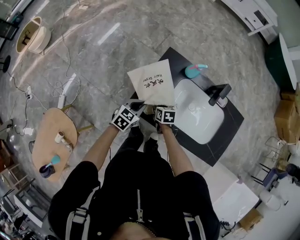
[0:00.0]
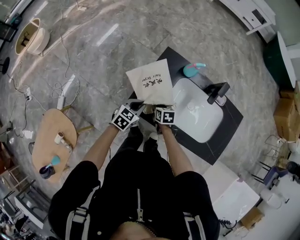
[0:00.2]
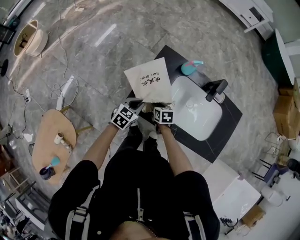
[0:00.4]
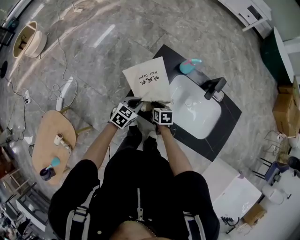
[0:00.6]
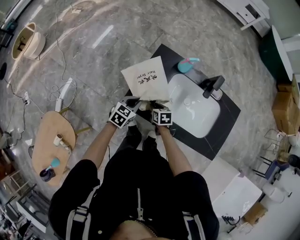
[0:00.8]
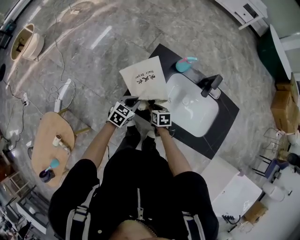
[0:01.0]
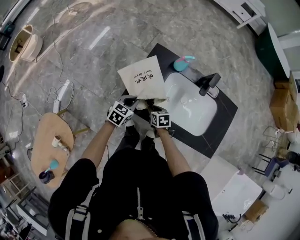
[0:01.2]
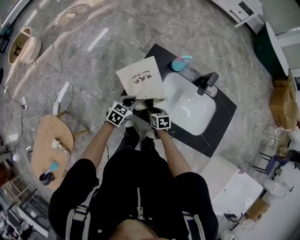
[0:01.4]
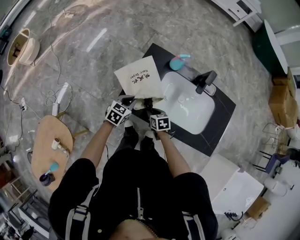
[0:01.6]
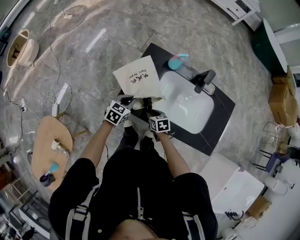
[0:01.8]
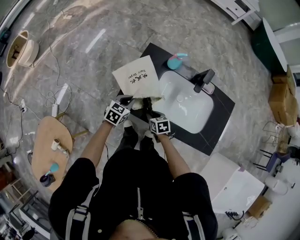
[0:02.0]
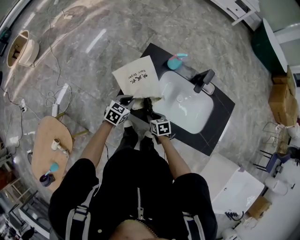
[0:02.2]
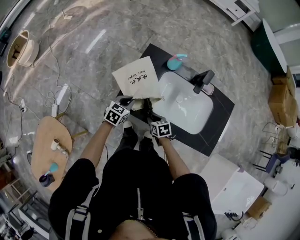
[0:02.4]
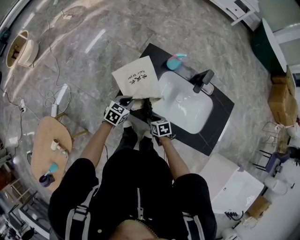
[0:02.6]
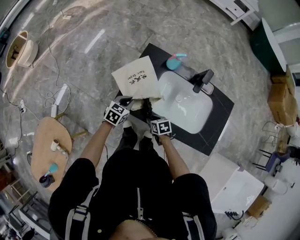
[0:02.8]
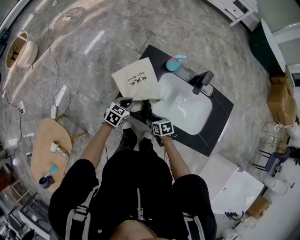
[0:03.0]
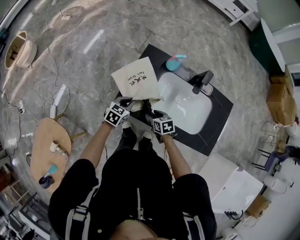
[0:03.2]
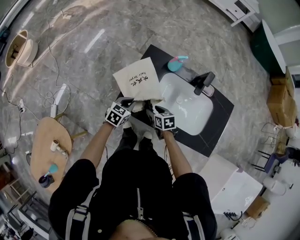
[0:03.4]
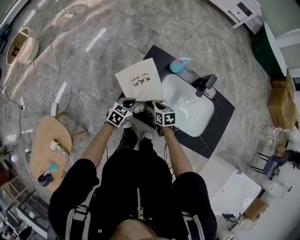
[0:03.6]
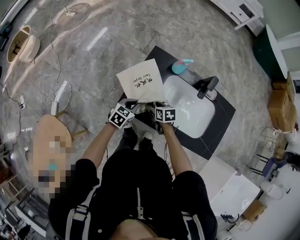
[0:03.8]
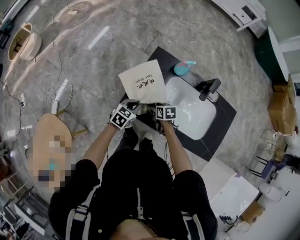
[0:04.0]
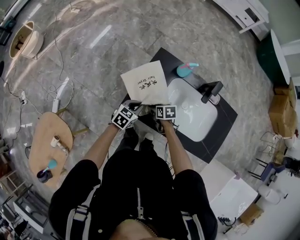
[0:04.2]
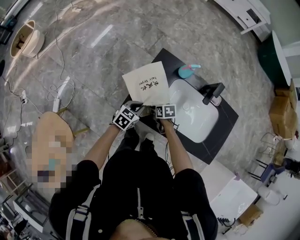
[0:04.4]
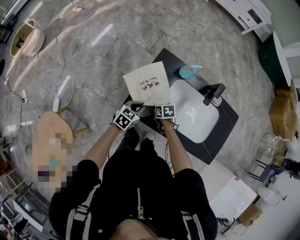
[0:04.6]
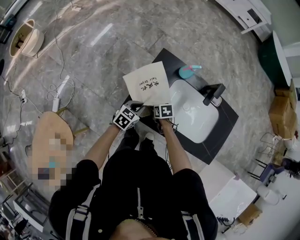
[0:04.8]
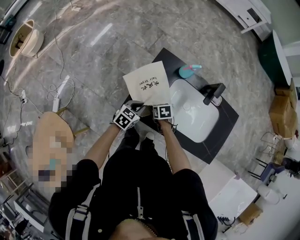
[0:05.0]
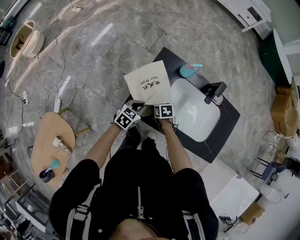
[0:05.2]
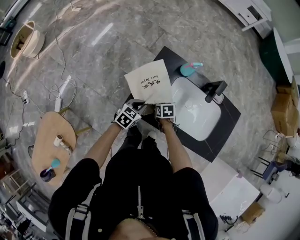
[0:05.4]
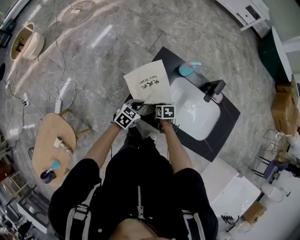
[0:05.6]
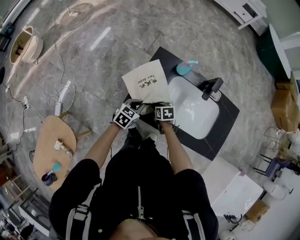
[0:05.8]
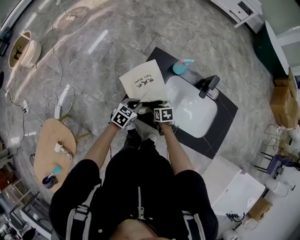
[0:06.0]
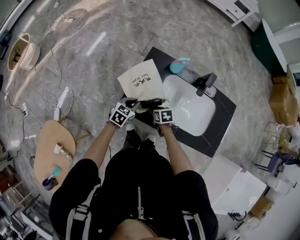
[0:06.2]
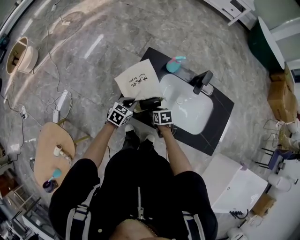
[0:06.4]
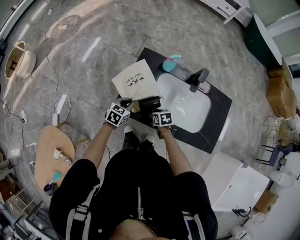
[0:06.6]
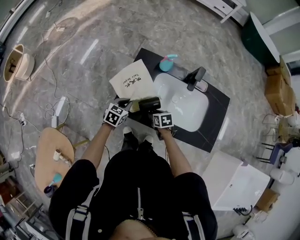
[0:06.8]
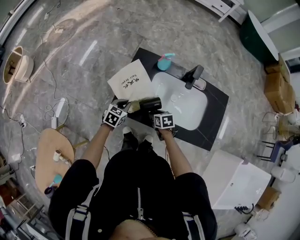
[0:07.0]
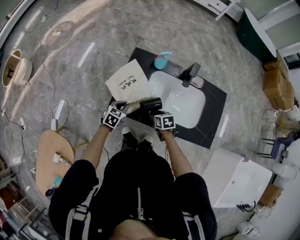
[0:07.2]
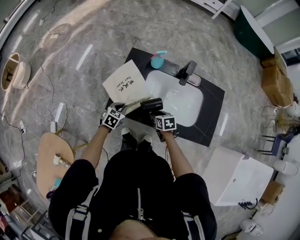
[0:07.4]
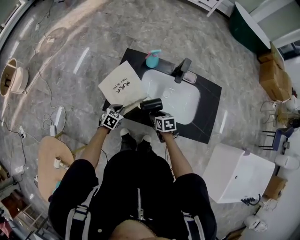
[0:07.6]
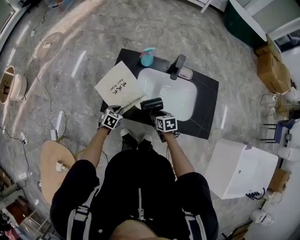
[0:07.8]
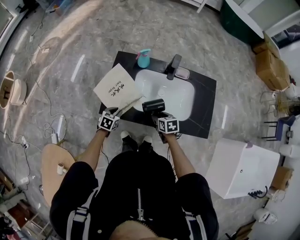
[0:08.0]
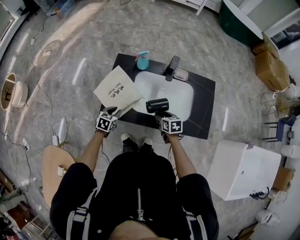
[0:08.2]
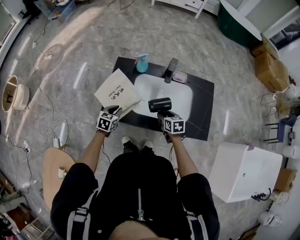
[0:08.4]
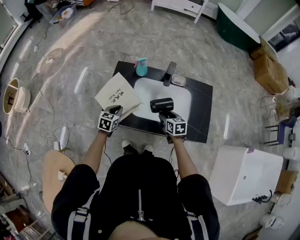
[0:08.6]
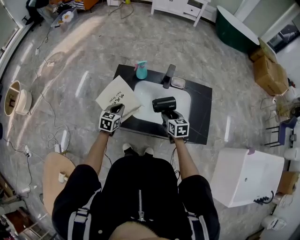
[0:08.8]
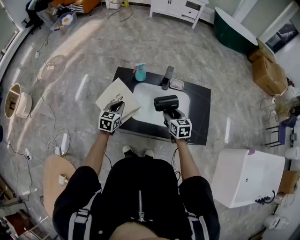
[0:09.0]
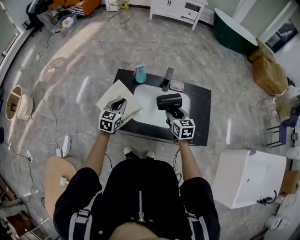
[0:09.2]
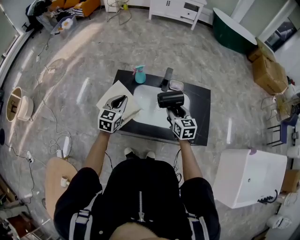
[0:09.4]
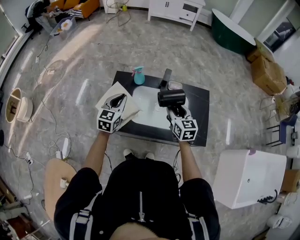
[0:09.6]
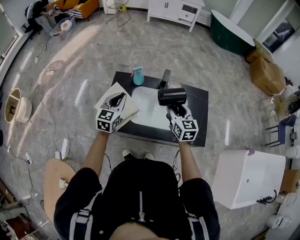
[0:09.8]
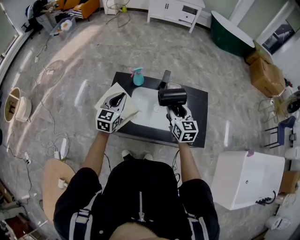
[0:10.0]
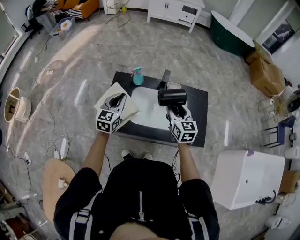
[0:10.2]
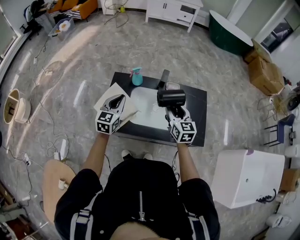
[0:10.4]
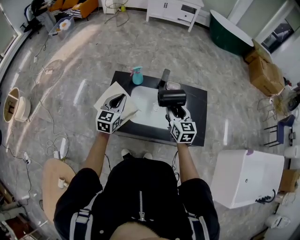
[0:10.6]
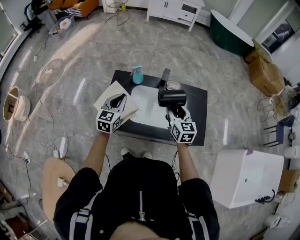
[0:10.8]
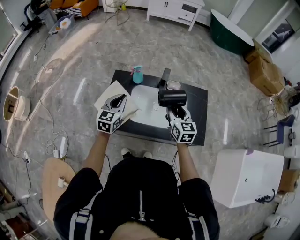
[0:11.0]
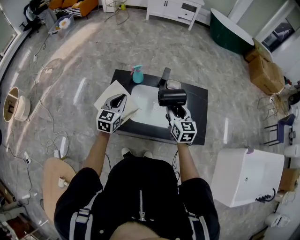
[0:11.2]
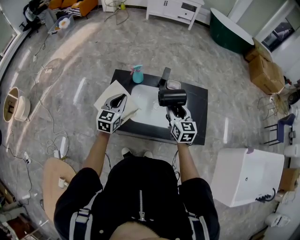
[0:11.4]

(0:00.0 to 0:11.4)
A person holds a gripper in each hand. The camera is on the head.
0:00.0 - 0:01.4: The right gripper heads backward, covering roughly 5 cm.
0:01.4 - 0:02.8: The right gripper is displaced backward by approximately 5 cm.
0:02.8 - 0:04.2: The right gripper goes approximately 10 cm forward, and opens its fingers.
0:04.2 - 0:05.6: There are only small adjustments of the grippers.
0:05.6 - 0:07.2: The right gripper travels to the right and backward by approximately 10 cm.
0:07.2 - 0:08.6: The left gripper shifts approximately 5 cm upward; the right gripper shifts approximately 15 cm to the right and upward, and changes its angle by approximately 20 degrees.
0:08.6 - 0:10.0: The grippers both shift upward by roughly 20 cm. The right gripper rotates roughly 30 degrees, while the left gripper changes its angle by roughly 30 degrees.
0:10.0 - 0:11.4: The grippers move only a little.

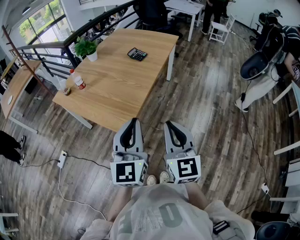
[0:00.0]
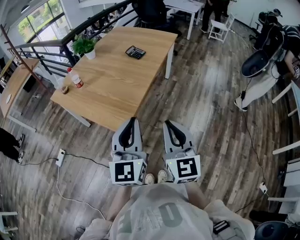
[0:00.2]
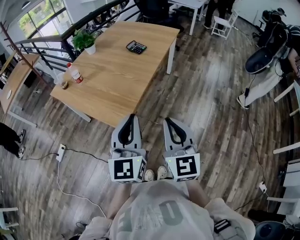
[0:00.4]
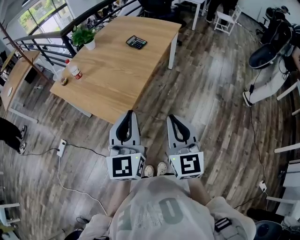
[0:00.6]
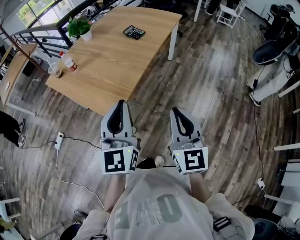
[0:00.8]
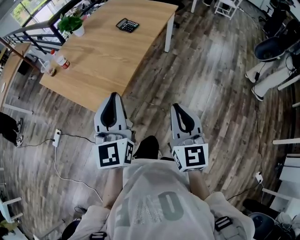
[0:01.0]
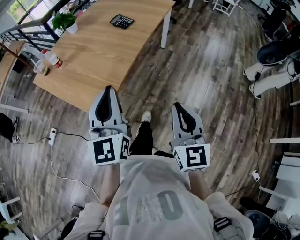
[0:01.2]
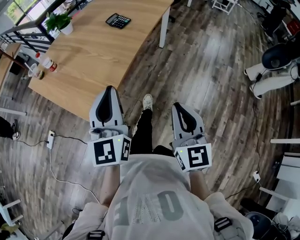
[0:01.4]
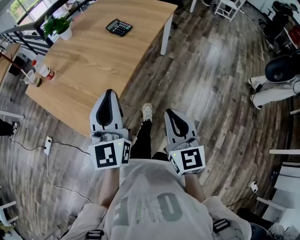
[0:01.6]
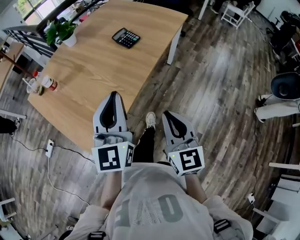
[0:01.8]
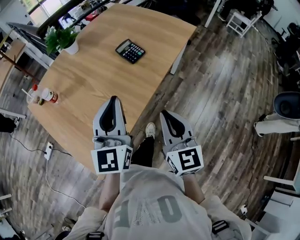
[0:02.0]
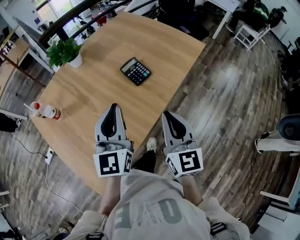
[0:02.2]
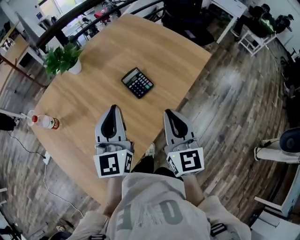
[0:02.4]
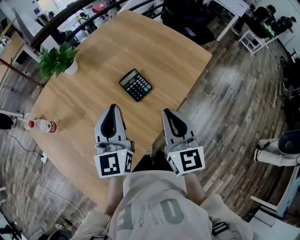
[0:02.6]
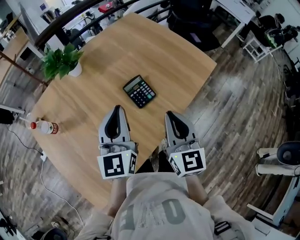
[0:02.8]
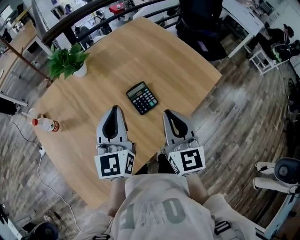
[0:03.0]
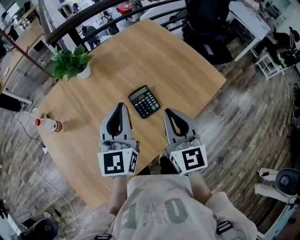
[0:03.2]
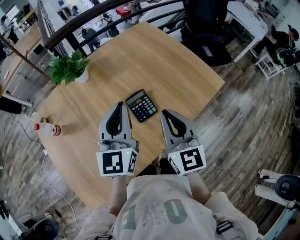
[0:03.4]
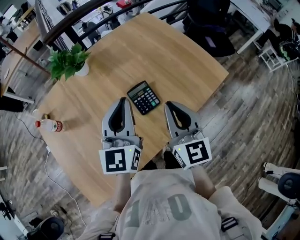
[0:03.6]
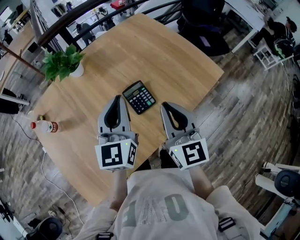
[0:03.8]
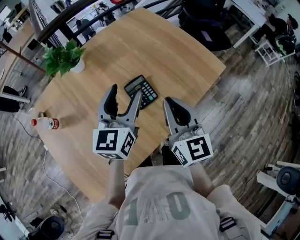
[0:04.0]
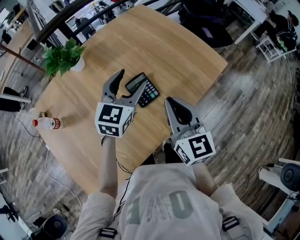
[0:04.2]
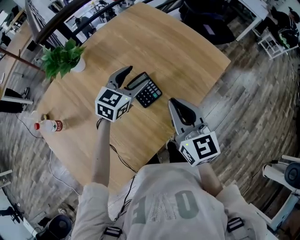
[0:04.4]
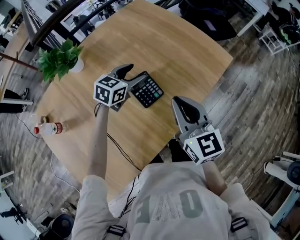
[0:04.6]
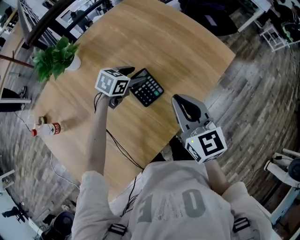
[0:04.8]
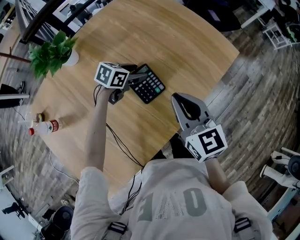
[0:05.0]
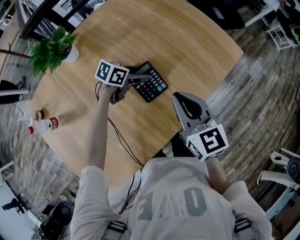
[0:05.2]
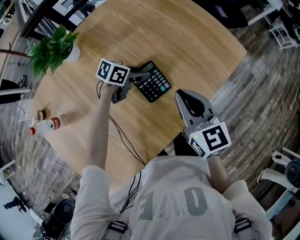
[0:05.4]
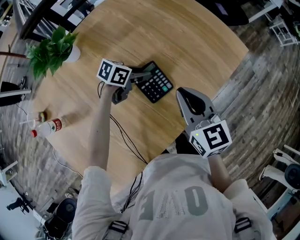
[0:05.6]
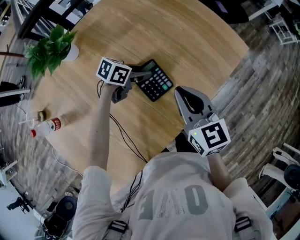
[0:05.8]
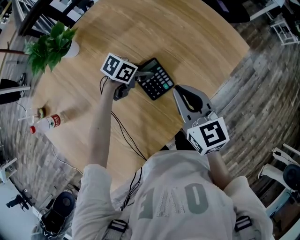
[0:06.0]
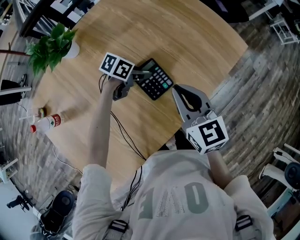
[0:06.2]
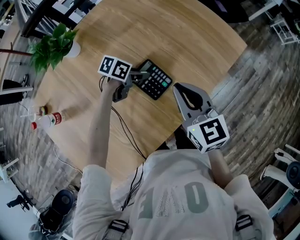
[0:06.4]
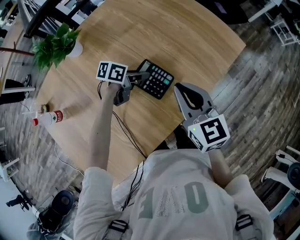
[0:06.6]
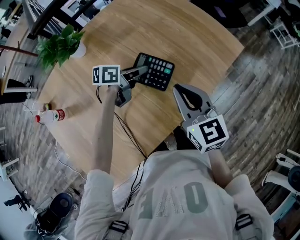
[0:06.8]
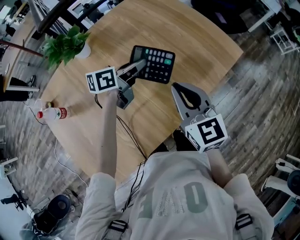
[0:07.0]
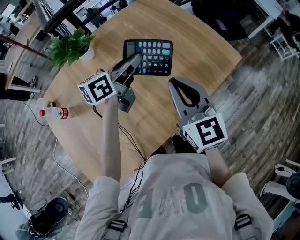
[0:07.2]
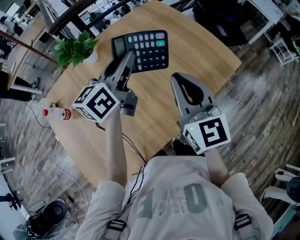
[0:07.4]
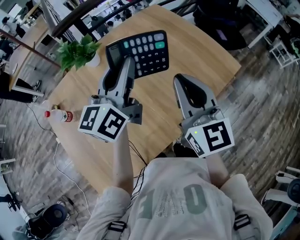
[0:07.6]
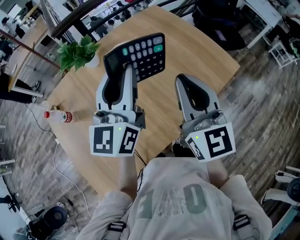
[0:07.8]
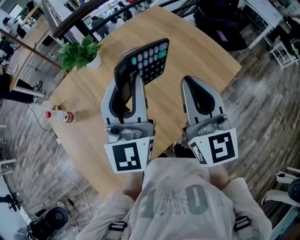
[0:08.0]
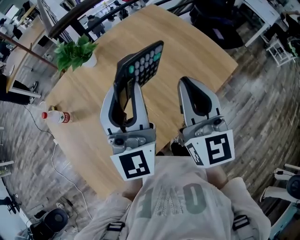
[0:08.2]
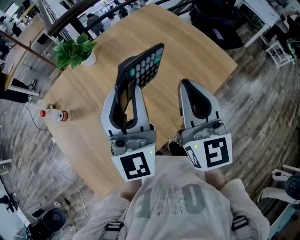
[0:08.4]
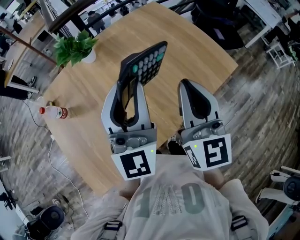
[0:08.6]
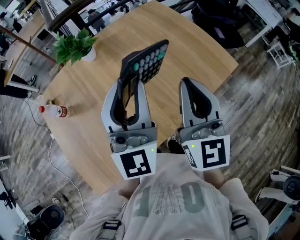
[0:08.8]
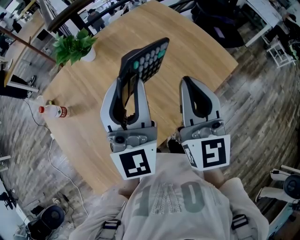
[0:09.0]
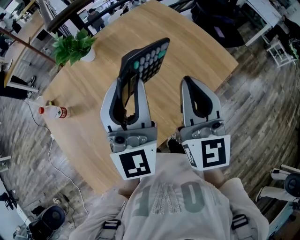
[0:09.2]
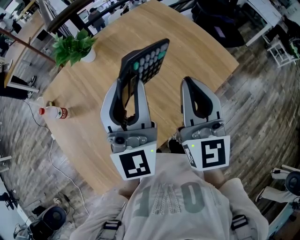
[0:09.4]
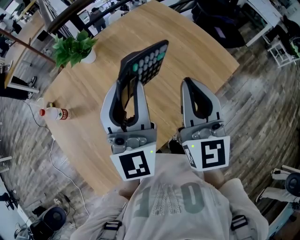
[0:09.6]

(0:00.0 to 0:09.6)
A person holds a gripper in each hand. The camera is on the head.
0:00.0 - 0:01.6: The left gripper shifts roughly 20 cm forward. The right gripper shifts approximately 20 cm forward, downward and to the right.
0:01.6 - 0:03.2: Both grippers are carried forward, approximately 50 cm. The right gripper turns by approximately 30 degrees. The left gripper rotates about 20 degrees.
0:03.2 - 0:04.8: The left gripper shifts some 25 cm downward, tilts its fingers about 40 degrees downward, and opens; the right gripper shifts about 5 cm downward.
0:04.8 - 0:06.4: The left gripper shifts about 5 cm downward, turns by approximately 30 degrees, and closes its fingers.
0:06.4 - 0:08.0: The right gripper goes approximately 20 cm upward, and turns by approximately 30 degrees, while the left gripper shifts about 40 cm upward, and tilts its fingers about 50 degrees upward.
0:08.0 - 0:09.6: There are only small adjustments of the grippers.

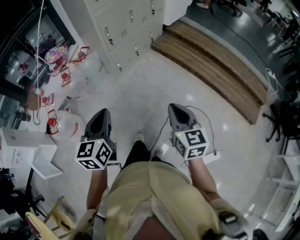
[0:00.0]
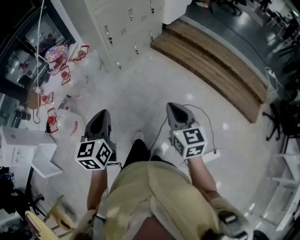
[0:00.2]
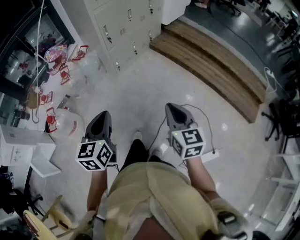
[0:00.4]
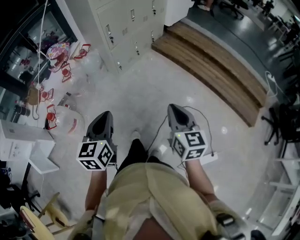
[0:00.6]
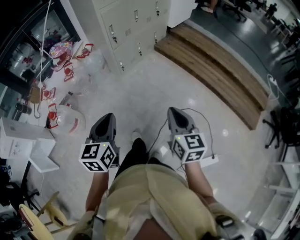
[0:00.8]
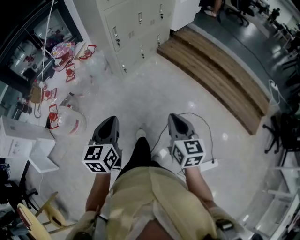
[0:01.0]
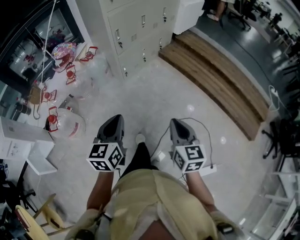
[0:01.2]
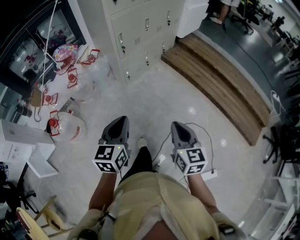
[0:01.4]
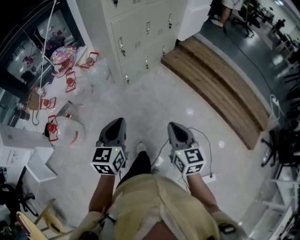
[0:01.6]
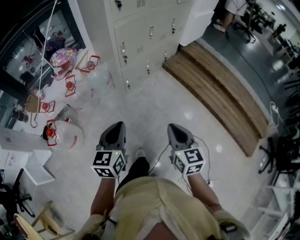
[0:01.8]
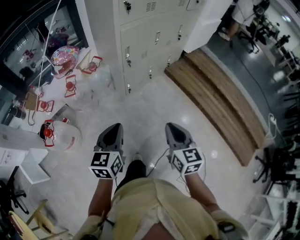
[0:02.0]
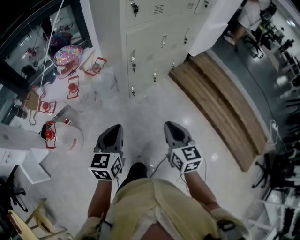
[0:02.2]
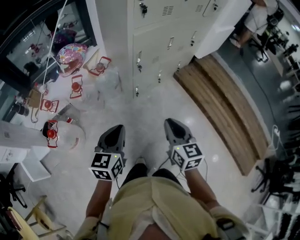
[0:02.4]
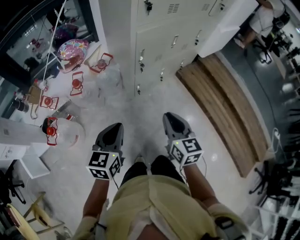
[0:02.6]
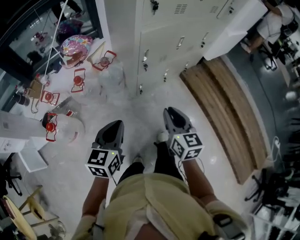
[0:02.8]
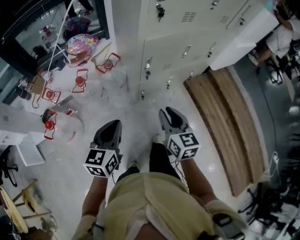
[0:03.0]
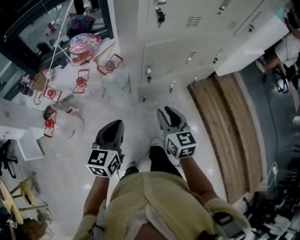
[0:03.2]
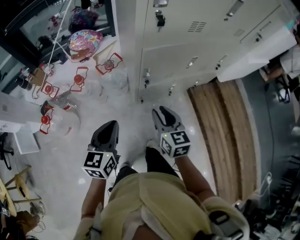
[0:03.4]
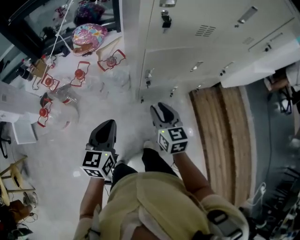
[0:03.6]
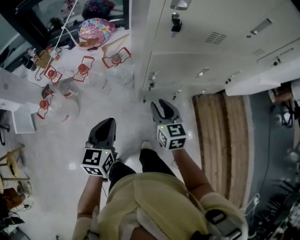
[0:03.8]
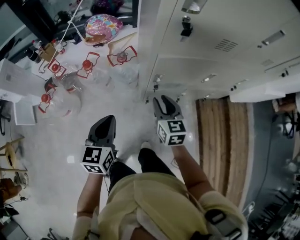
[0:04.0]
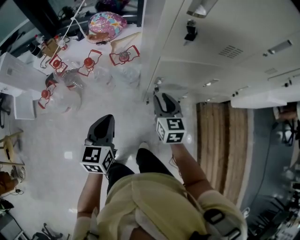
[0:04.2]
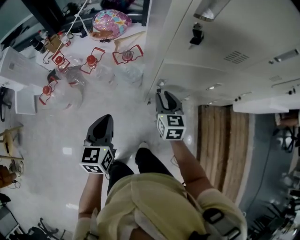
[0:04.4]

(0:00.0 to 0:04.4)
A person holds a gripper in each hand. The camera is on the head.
0:00.0 - 0:01.4: The left gripper travels forward by roughly 5 cm. Meanwhile the right gripper moves about 5 cm.
0:01.4 - 0:03.0: The two grippers go some 35 cm forward. The right gripper changes its angle by about 20 degrees.
0:03.0 - 0:04.4: The left gripper travels forward by some 10 cm, and changes its angle by roughly 30 degrees. Meanwhile the right gripper shifts about 25 cm forward, and swivels roughly 20 degrees.
